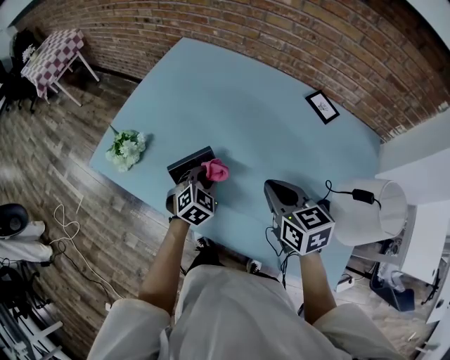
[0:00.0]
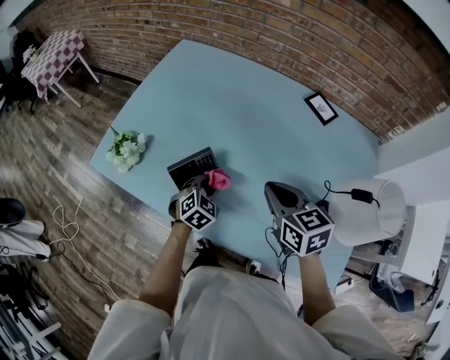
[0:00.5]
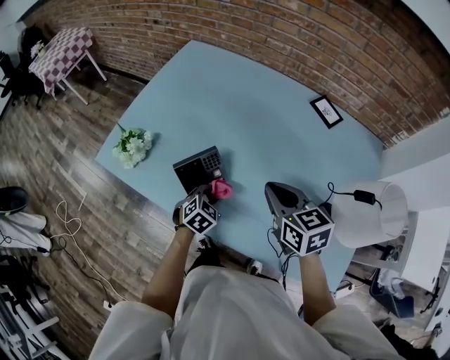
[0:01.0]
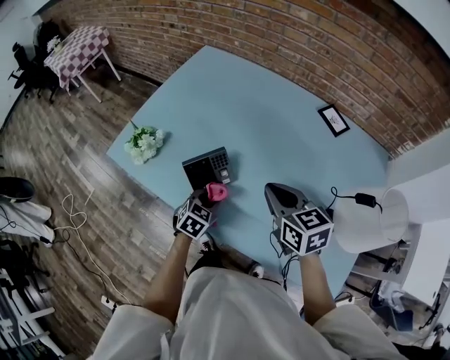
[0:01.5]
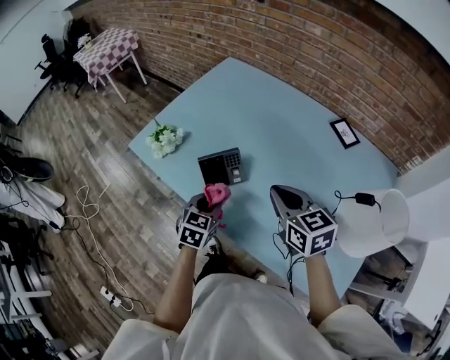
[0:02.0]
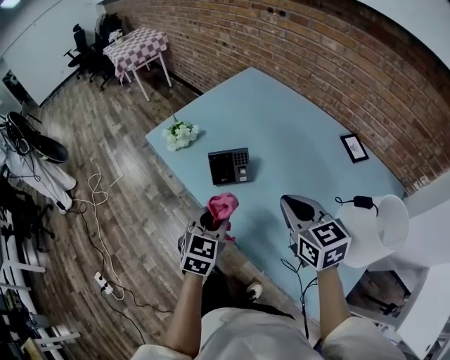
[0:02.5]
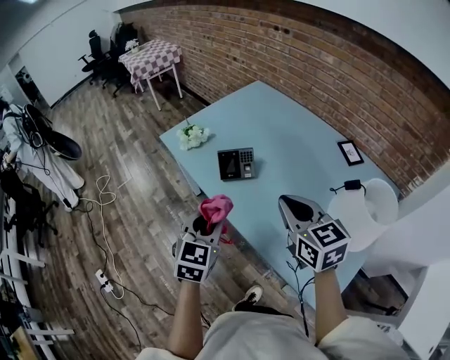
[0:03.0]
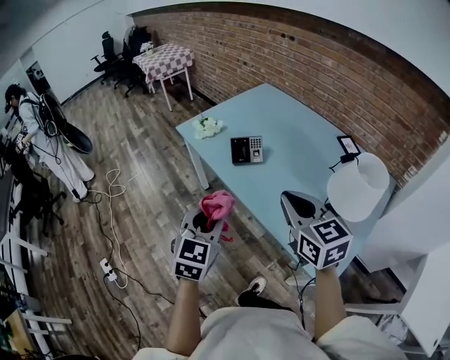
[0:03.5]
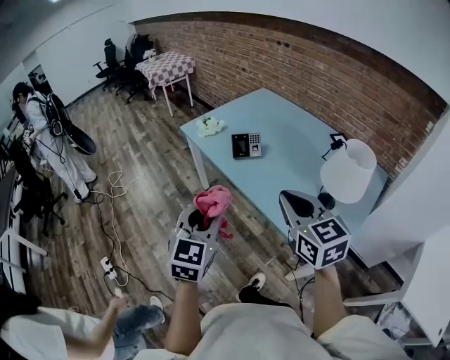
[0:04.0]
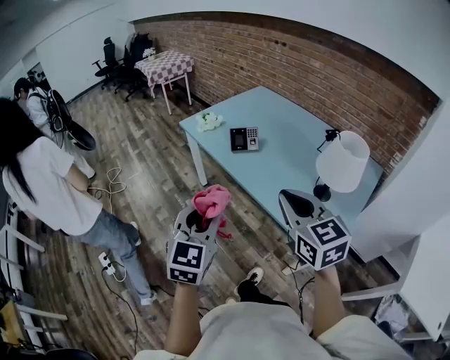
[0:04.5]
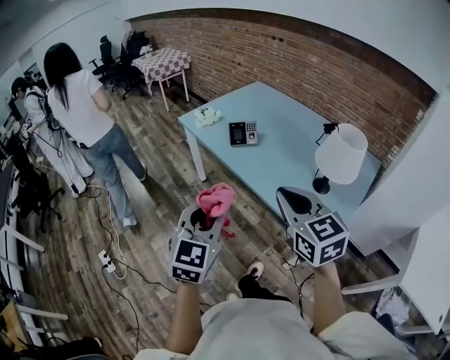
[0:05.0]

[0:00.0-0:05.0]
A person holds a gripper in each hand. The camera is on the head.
0:00.0 to 0:02.5: The right gripper changes place by some 10 cm, and swivels some 20 degrees; the left gripper changes place by some 25 cm, and rotates approximately 40 degrees.
0:02.5 to 0:05.0: The right gripper goes roughly 35 cm backward, while the left gripper shifts roughly 40 cm backward and upward.

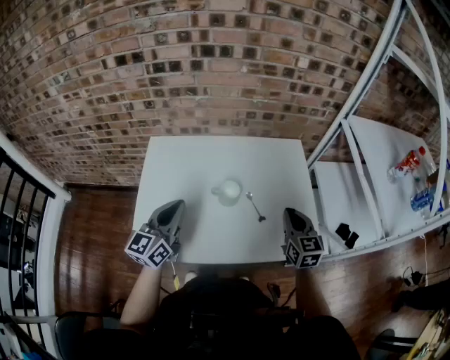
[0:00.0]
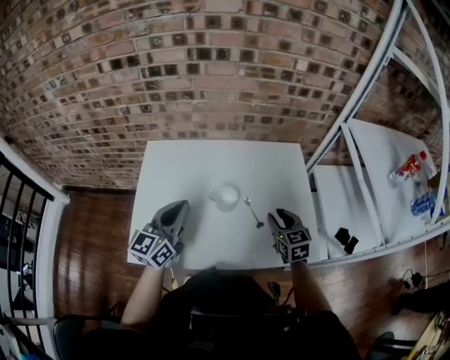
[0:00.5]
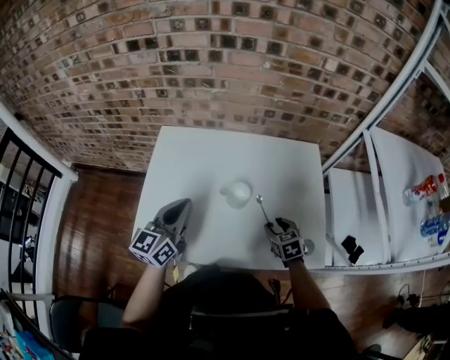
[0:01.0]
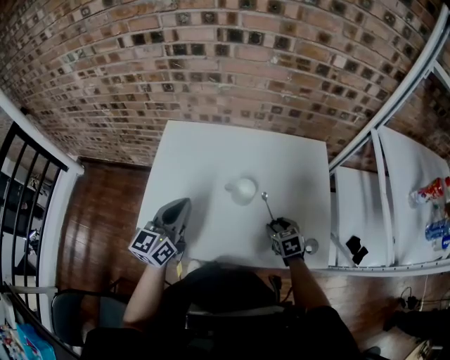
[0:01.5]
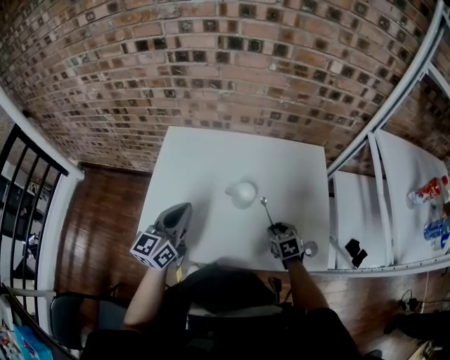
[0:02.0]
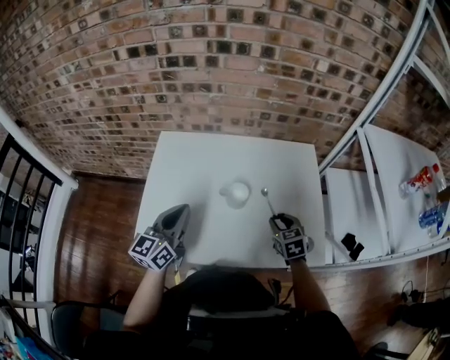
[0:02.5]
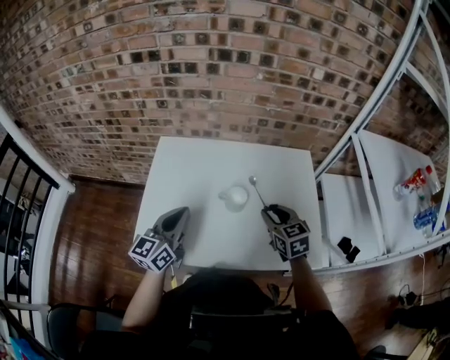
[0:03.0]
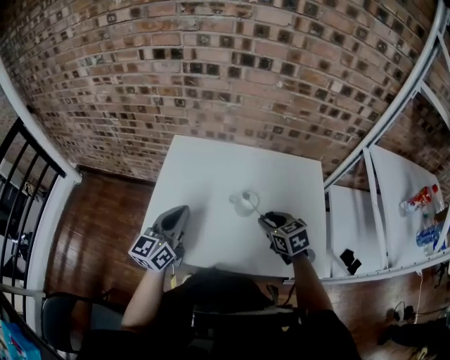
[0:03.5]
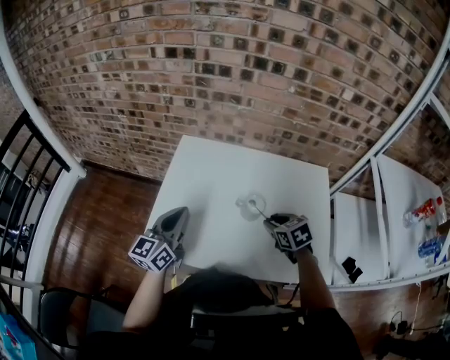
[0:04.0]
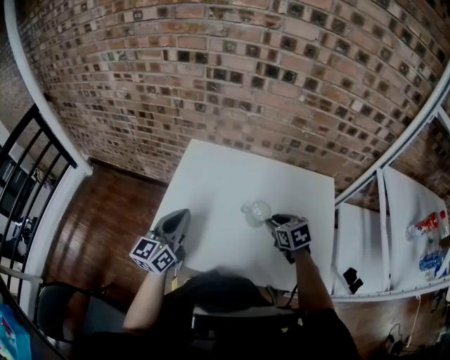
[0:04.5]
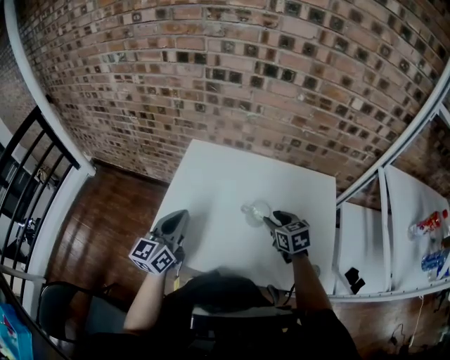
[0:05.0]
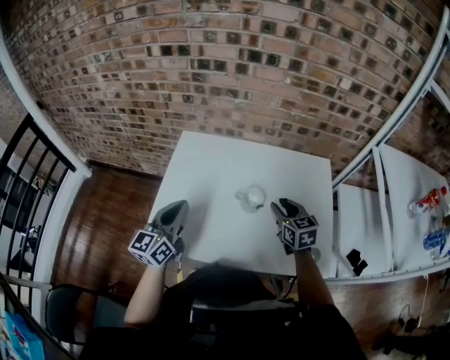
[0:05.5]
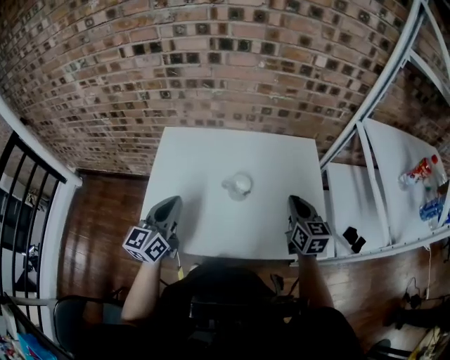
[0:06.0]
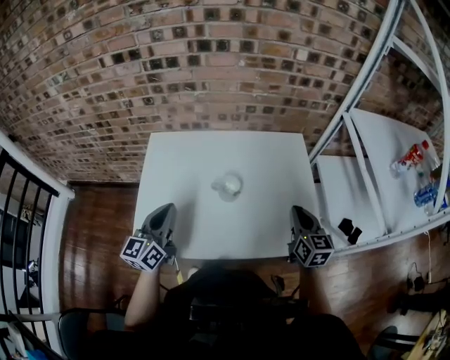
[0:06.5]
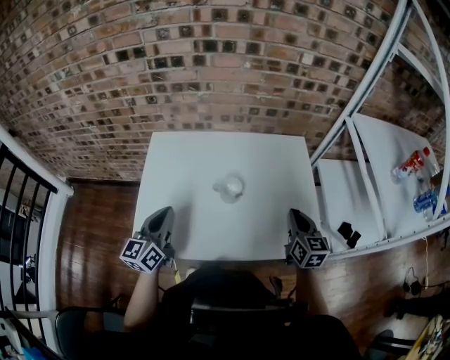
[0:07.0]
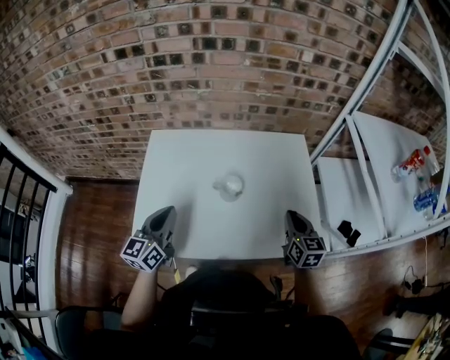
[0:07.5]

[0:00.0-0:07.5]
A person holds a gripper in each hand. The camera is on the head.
0:00.0 to 0:02.0: The right gripper moves downward, about 20 cm, points its fingers approximately 40 degrees further downward, and opens up.
0:02.0 to 0:04.0: The right gripper goes approximately 15 cm upward and to the left. The left gripper moves to the left, about 5 cm.
0:04.0 to 0:05.5: The right gripper ends up about 5 cm from where it was, and turns by approximately 30 degrees.
0:05.5 to 0:07.5: The right gripper goes some 15 cm to the right and backward, rotates about 20 degrees, and closes up.

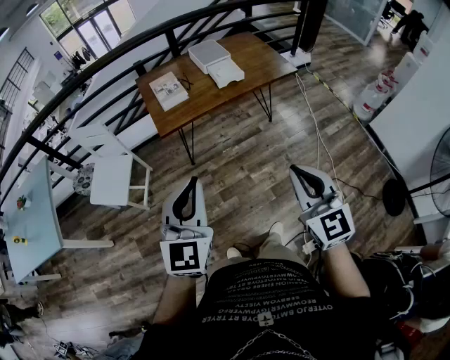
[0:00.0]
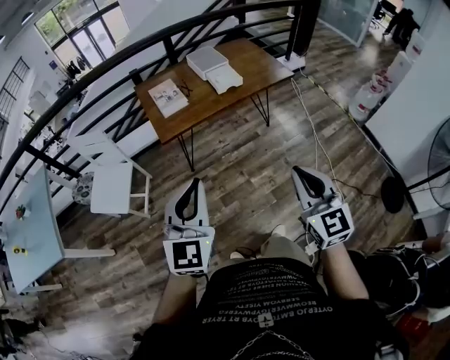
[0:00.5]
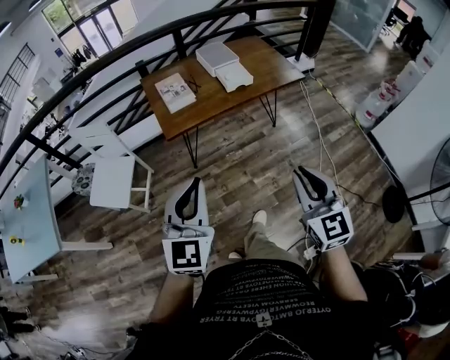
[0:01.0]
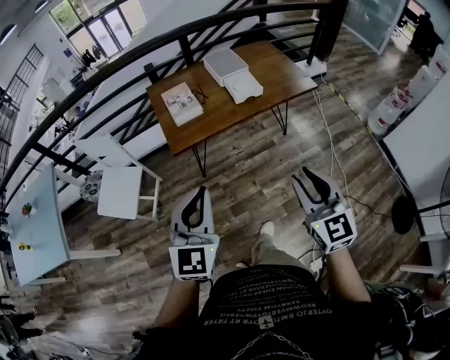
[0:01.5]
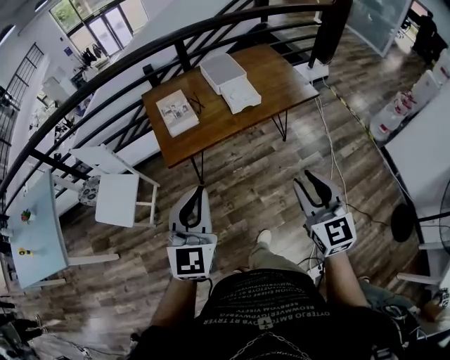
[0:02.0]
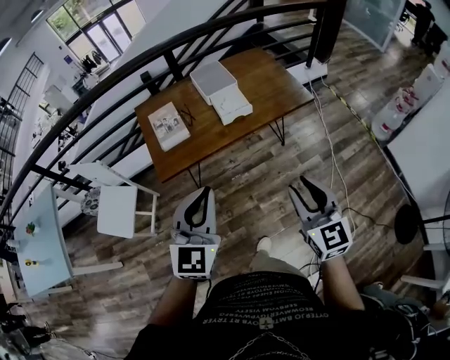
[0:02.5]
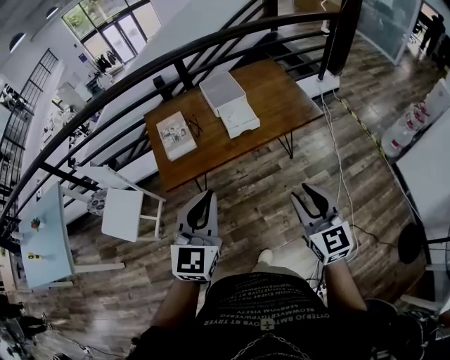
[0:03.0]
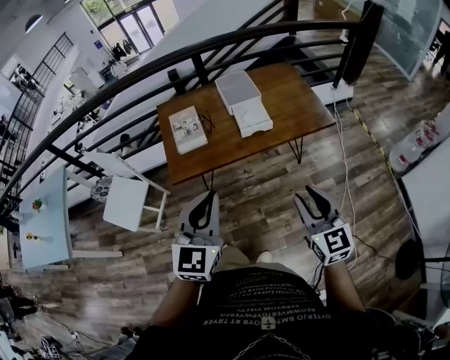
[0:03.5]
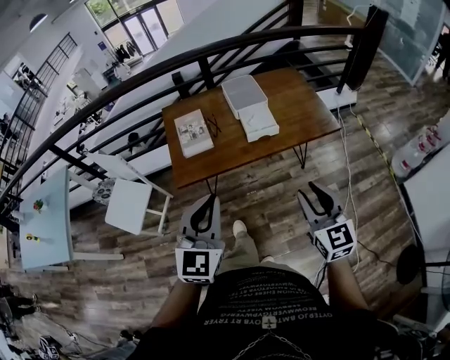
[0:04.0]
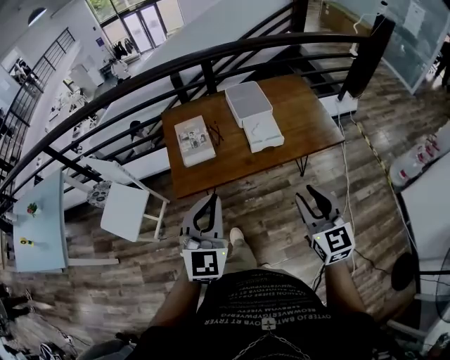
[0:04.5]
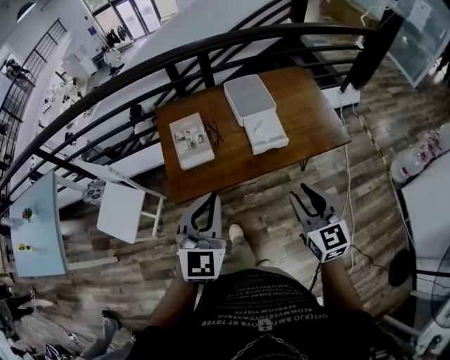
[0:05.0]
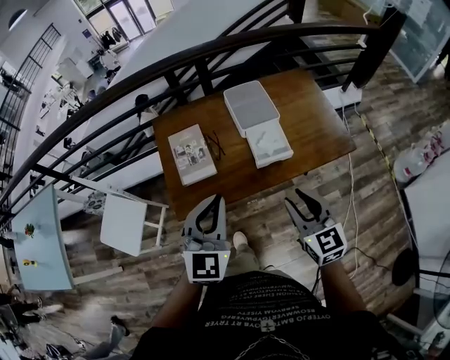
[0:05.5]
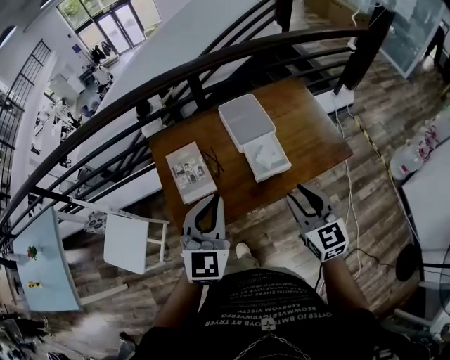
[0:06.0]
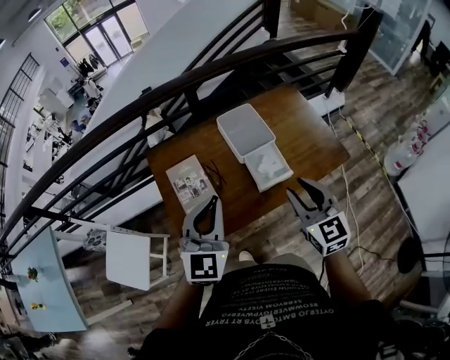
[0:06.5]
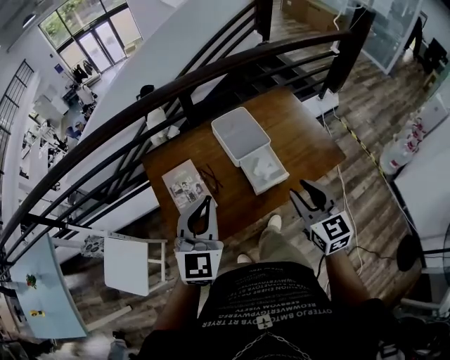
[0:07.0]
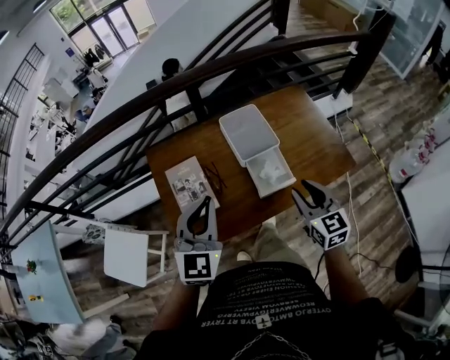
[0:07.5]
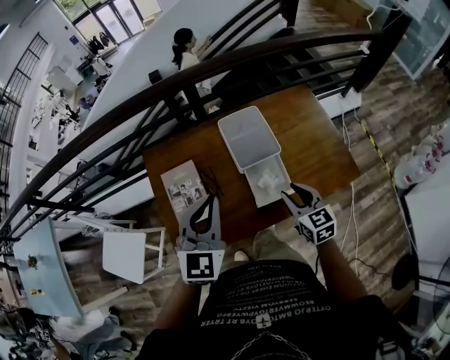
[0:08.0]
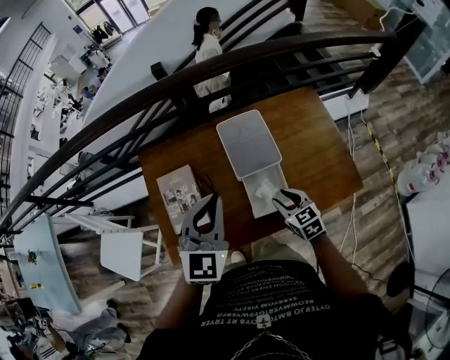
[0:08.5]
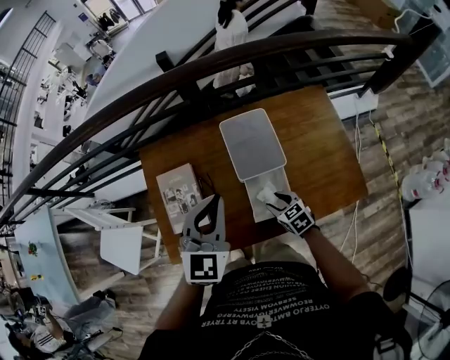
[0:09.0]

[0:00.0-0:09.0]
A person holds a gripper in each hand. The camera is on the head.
0:00.0 to 0:02.0: The grippers both shift forward by about 20 cm. The right gripper opens.
0:02.0 to 0:04.5: Both grippers move forward, some 20 cm.
0:04.5 to 0:07.0: Both grippers travel together forward, about 30 cm.
0:07.0 to 0:09.0: The left gripper goes about 20 cm forward and to the right. The right gripper heads downward and forward, covering about 35 cm, and tilts its fingers roughly 30 degrees downward.

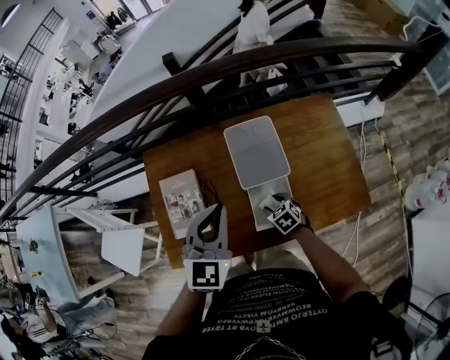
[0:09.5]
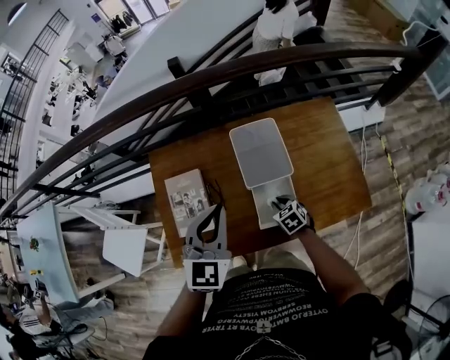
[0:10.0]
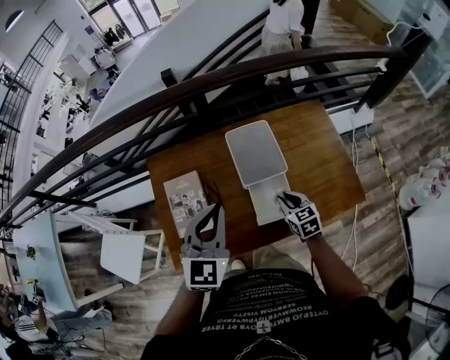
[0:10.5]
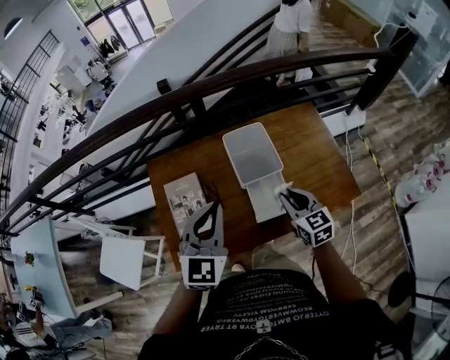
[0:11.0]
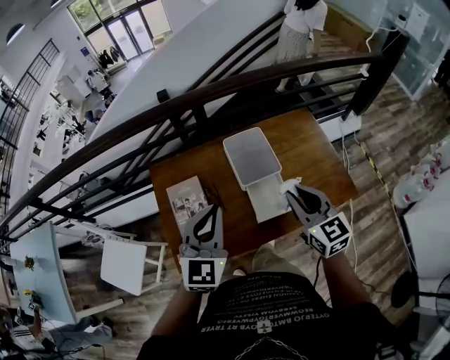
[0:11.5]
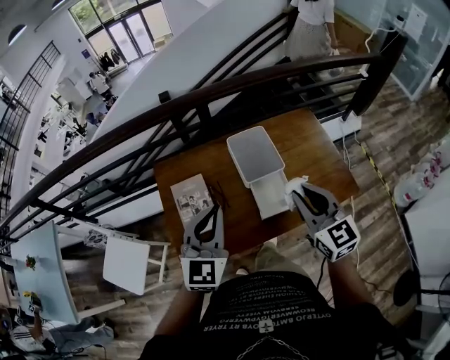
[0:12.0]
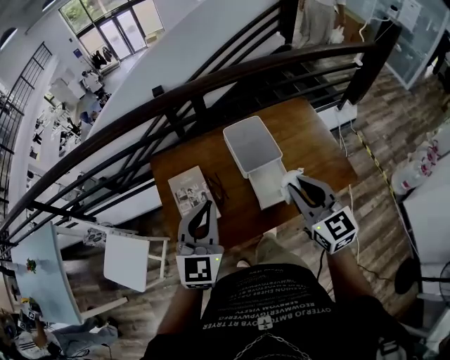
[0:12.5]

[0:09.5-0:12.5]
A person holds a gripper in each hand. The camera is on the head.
0:09.5 to 0:11.0: The left gripper shifts roughly 10 cm backward and to the left; the right gripper shifts roughly 25 cm upward, points its fingers approximately 30 degrees further upward, and closes.
0:11.0 to 0:12.5: The left gripper travels backward and to the left by some 10 cm, while the right gripper shifts some 15 cm upward and backward.

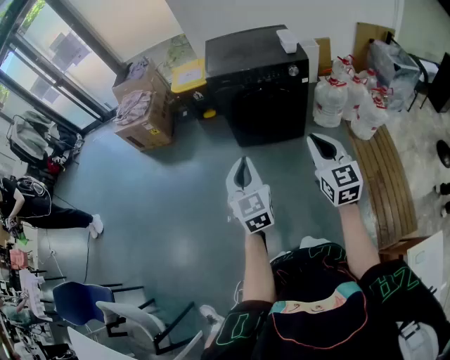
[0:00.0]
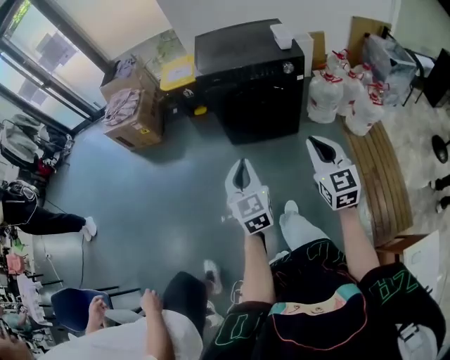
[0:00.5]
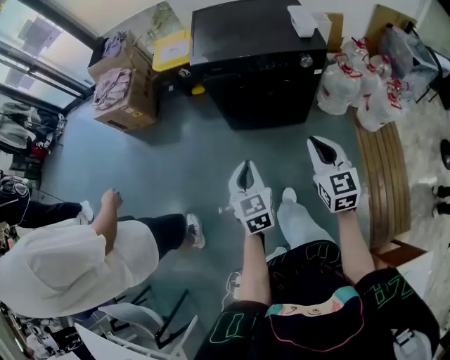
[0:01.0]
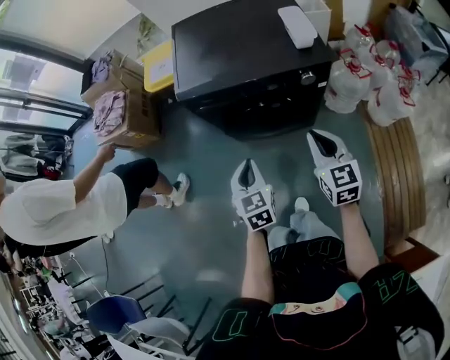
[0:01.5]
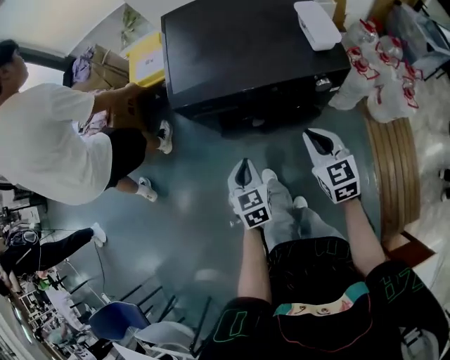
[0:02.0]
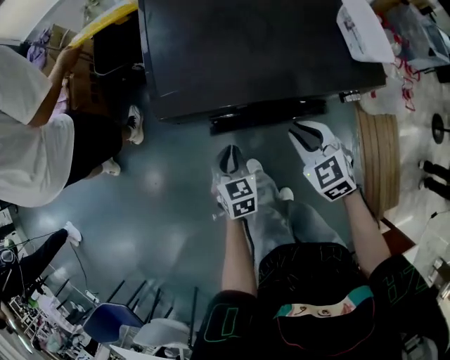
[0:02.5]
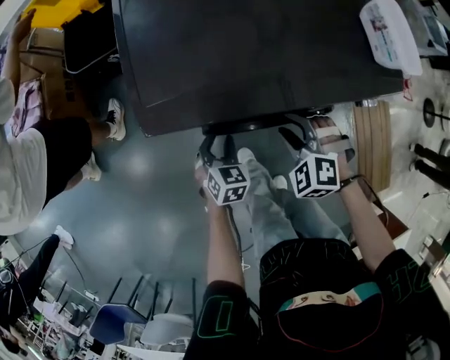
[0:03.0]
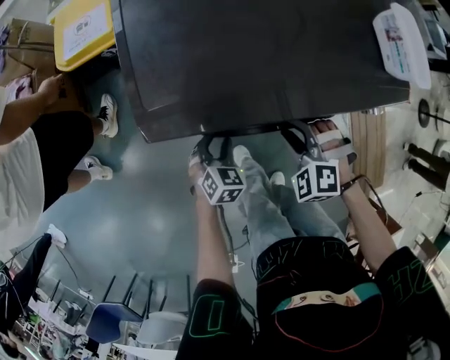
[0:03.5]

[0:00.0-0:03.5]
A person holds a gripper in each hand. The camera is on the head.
0:00.0 to 0:02.0: Both grippers move forward and downward, about 40 cm. The right gripper swivels about 20 degrees, while the left gripper rotates some 30 degrees.
0:02.0 to 0:03.5: The left gripper shifts approximately 25 cm downward and forward, turns by roughly 40 degrees, and opens its fingers, while the right gripper goes roughly 20 cm downward, forward and to the left, rotates around the line of its fingers by approximately 50 degrees, counterclockwise from behind, and opens its fingers.
